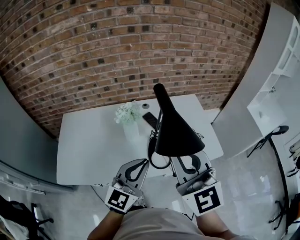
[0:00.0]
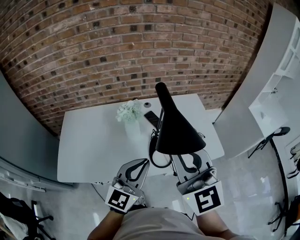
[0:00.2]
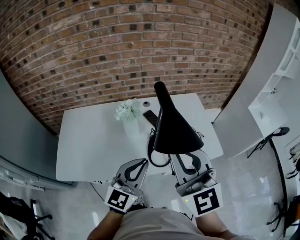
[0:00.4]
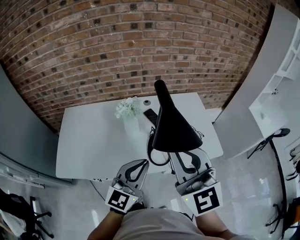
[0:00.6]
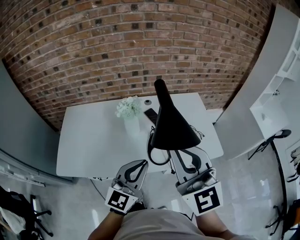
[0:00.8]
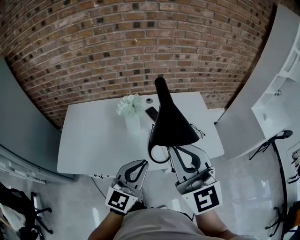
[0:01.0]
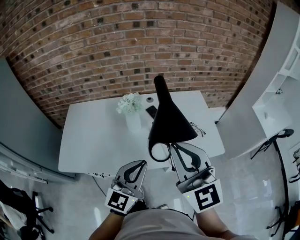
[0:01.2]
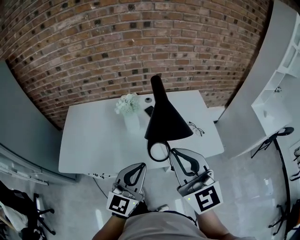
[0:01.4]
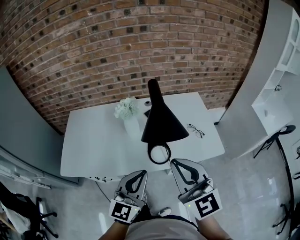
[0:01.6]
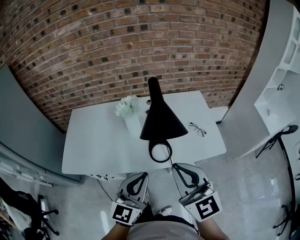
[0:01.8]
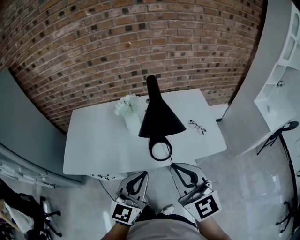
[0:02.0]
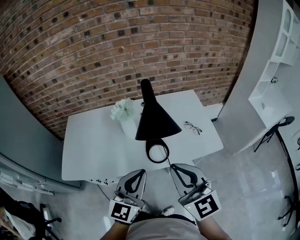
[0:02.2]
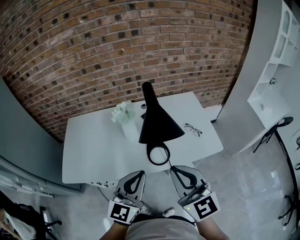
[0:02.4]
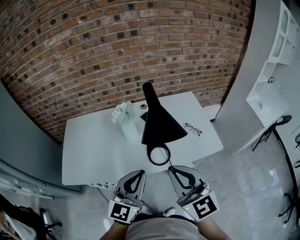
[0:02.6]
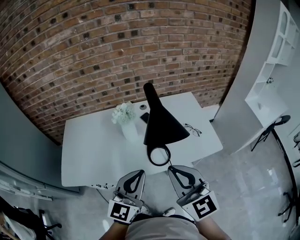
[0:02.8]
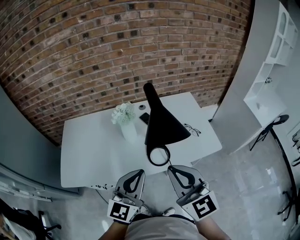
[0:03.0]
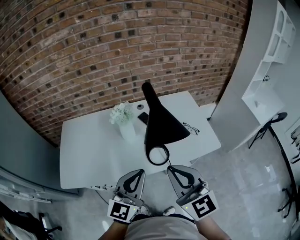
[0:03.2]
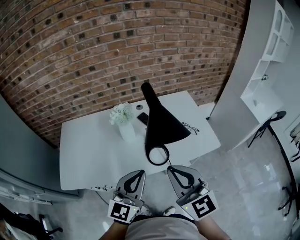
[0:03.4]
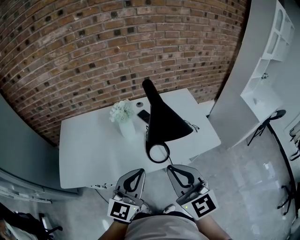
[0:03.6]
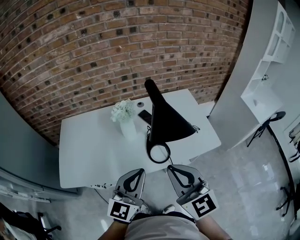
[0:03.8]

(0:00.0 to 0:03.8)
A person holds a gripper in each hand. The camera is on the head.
0:00.0 - 0:01.2: The grippers move only a little.
0:01.2 - 0:02.6: The right gripper travels downward and backward by some 10 cm.
0:02.6 - 0:03.8: There are only small adjustments of the grippers.

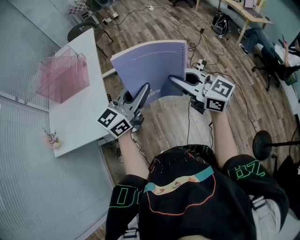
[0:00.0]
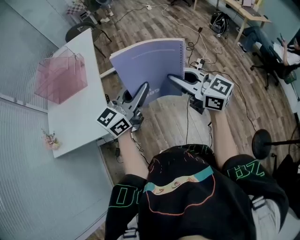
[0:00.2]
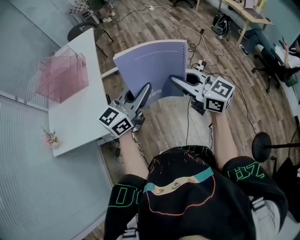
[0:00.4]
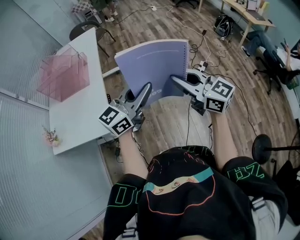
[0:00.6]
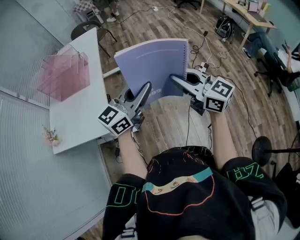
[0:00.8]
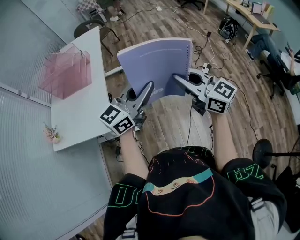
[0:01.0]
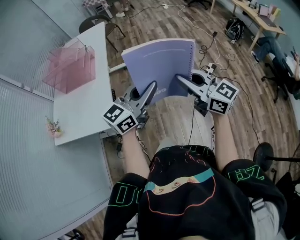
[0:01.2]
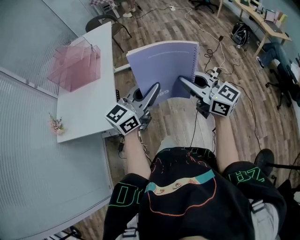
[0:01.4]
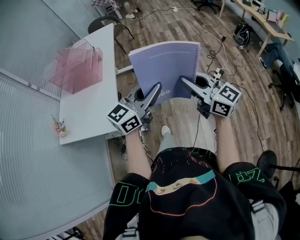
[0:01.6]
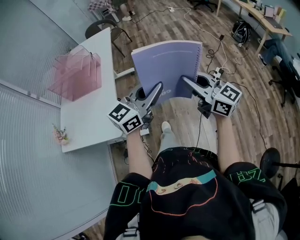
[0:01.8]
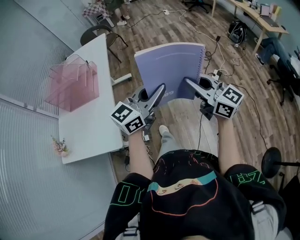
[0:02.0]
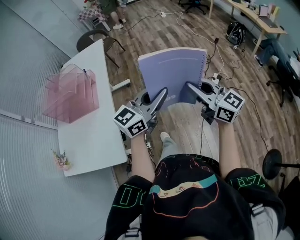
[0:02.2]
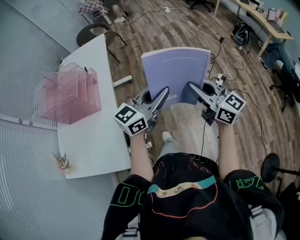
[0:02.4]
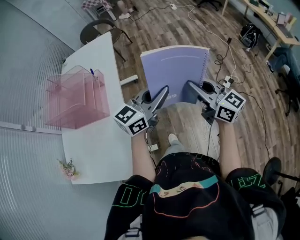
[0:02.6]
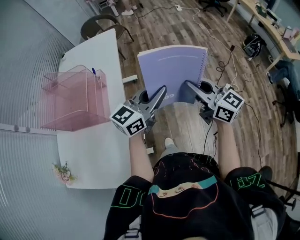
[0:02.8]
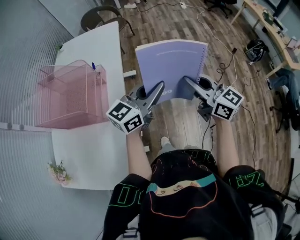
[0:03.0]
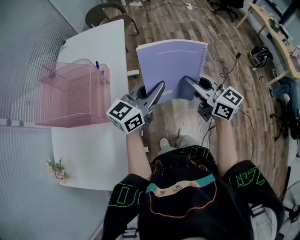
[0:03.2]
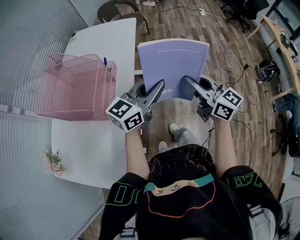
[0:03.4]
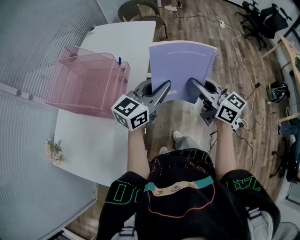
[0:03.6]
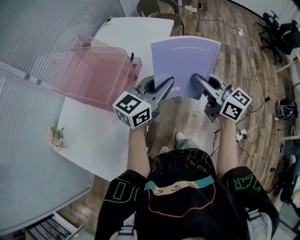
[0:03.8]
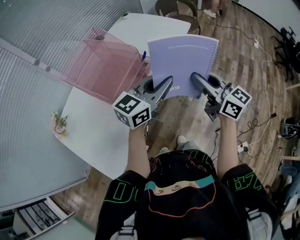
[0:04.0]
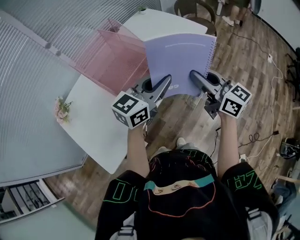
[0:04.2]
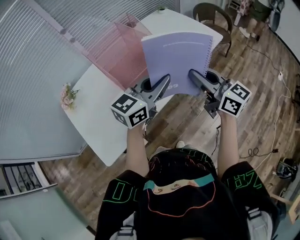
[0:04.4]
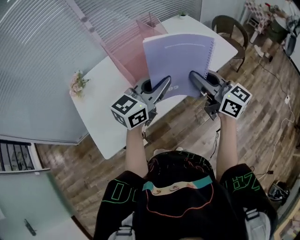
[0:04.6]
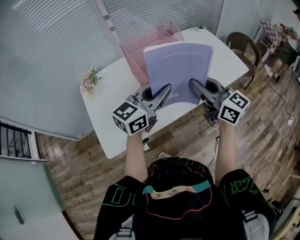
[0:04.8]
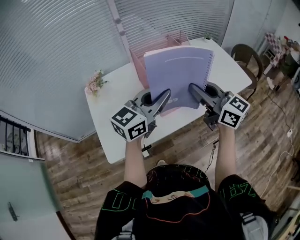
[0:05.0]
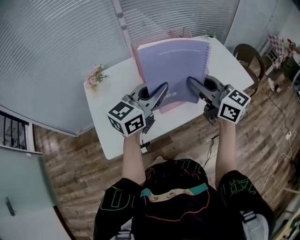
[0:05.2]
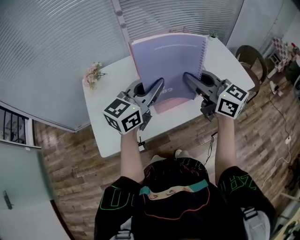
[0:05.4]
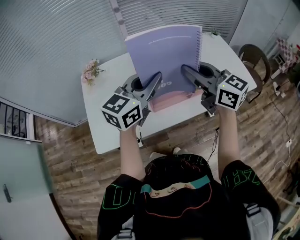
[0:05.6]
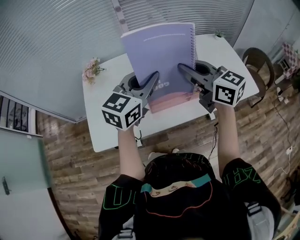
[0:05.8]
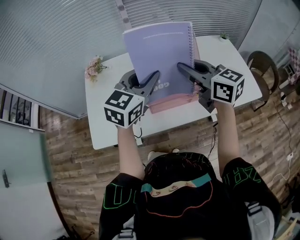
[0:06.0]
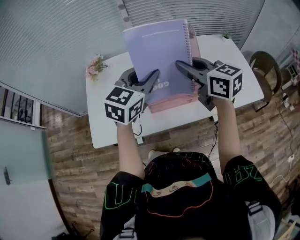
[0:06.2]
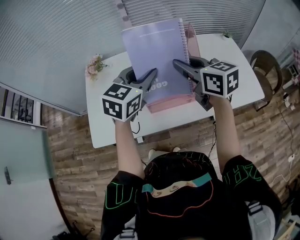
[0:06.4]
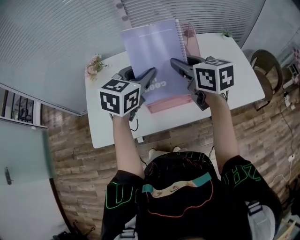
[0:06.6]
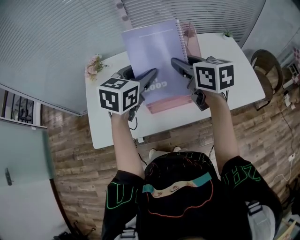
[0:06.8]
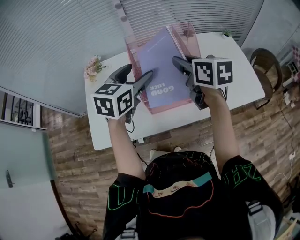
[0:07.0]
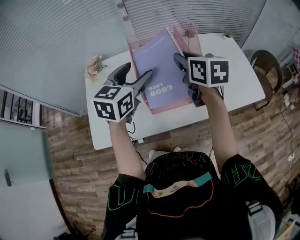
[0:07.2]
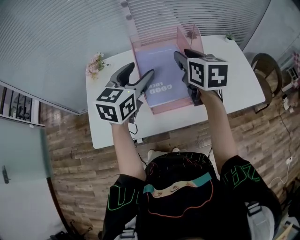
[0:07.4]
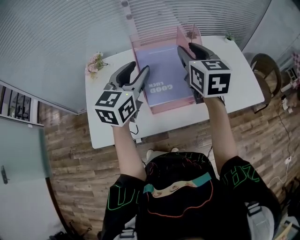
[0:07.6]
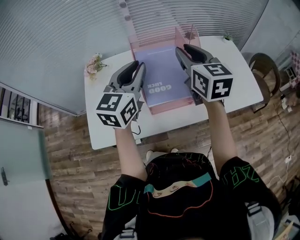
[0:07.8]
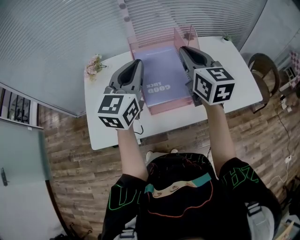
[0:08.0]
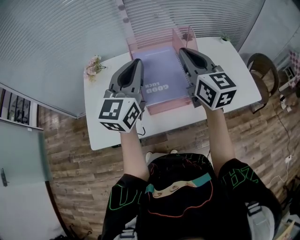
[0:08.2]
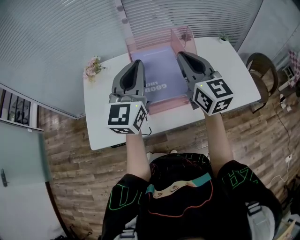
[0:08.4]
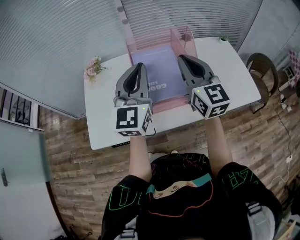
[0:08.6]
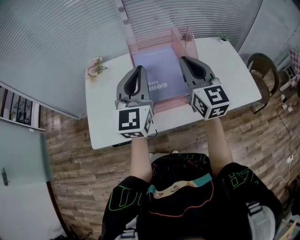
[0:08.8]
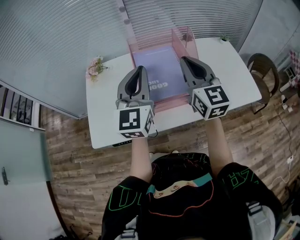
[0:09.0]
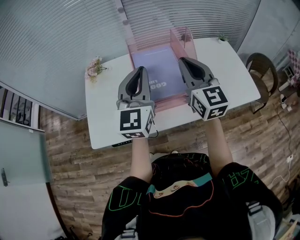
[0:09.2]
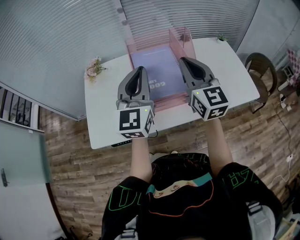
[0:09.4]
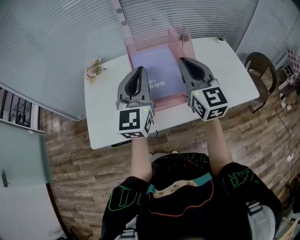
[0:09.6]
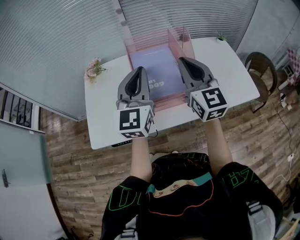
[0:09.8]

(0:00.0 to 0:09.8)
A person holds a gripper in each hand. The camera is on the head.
0:00.0 - 0:01.4: The grippers move only a little.
0:01.4 - 0:02.8: The grippers both shift forward and to the left by roughly 35 cm.
0:02.8 - 0:04.2: The left gripper ends up approximately 20 cm from where it was, and rotates roughly 50 degrees; the right gripper moves some 30 cm, and changes its angle by approximately 40 degrees.
0:04.2 - 0:05.6: The right gripper changes place by approximately 25 cm, and swivels some 40 degrees; the left gripper ends up roughly 20 cm from where it was, and rotates about 40 degrees.
0:05.6 - 0:07.0: The two grippers go some 10 cm forward. The left gripper turns by roughly 30 degrees, and opens its fingers, while the right gripper changes its angle by some 30 degrees.
0:07.0 - 0:08.4: The two grippers go about 5 cm upward. The right gripper changes its angle by some 30 degrees; the left gripper tips its fingers upward by some 30 degrees, and closes its fingers.
0:08.4 - 0:09.8: There are only small adjustments of the grippers.

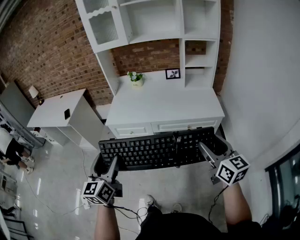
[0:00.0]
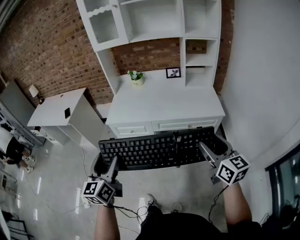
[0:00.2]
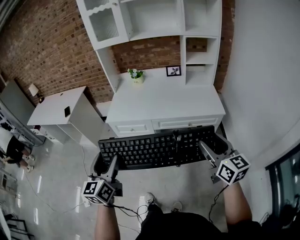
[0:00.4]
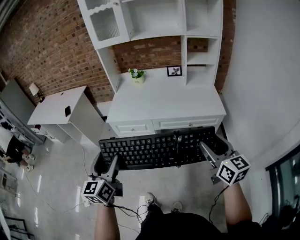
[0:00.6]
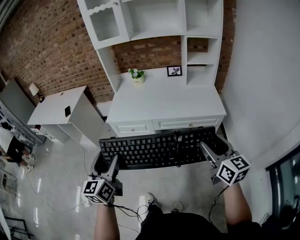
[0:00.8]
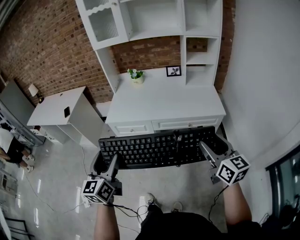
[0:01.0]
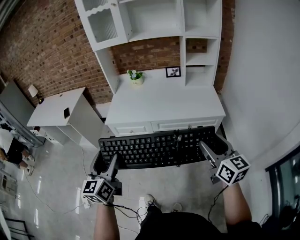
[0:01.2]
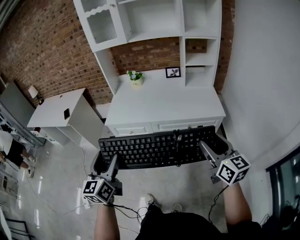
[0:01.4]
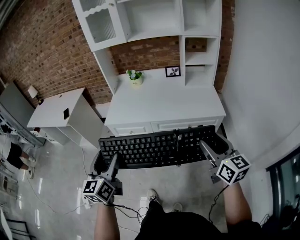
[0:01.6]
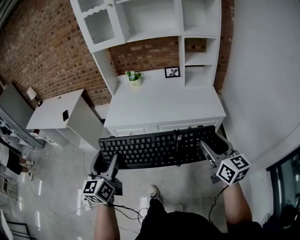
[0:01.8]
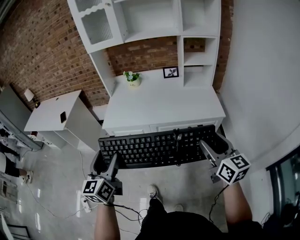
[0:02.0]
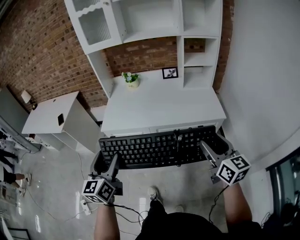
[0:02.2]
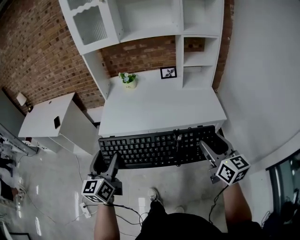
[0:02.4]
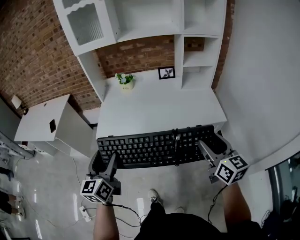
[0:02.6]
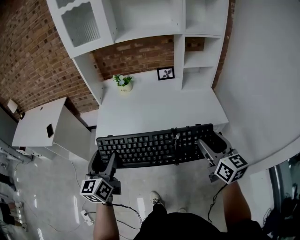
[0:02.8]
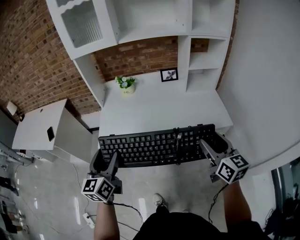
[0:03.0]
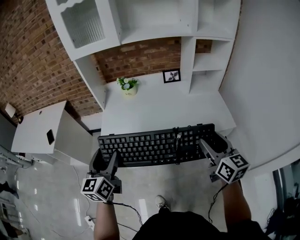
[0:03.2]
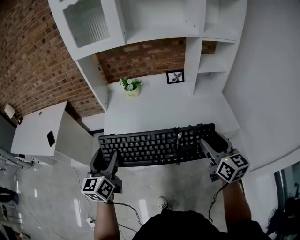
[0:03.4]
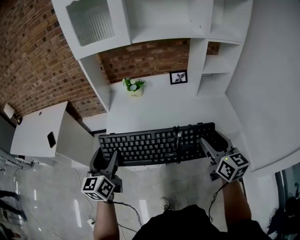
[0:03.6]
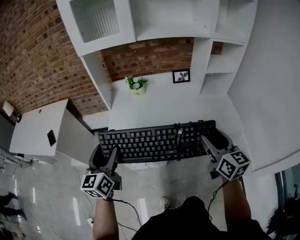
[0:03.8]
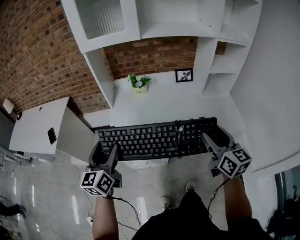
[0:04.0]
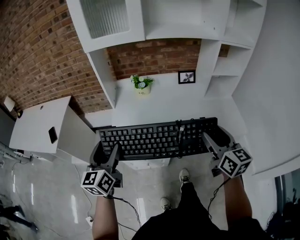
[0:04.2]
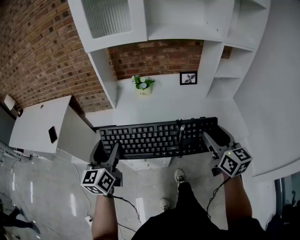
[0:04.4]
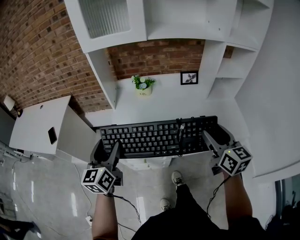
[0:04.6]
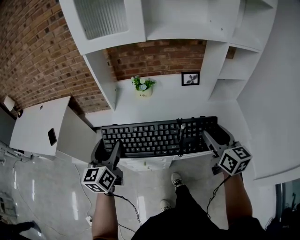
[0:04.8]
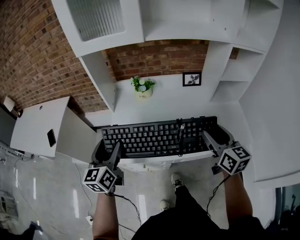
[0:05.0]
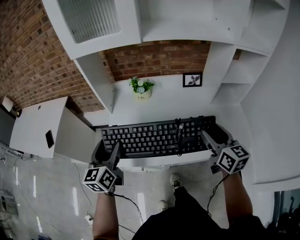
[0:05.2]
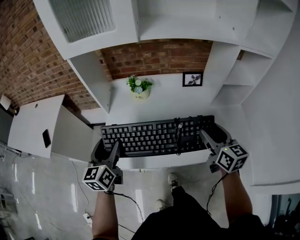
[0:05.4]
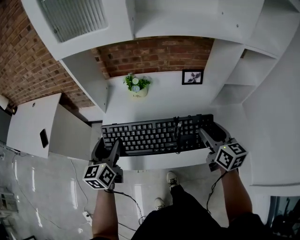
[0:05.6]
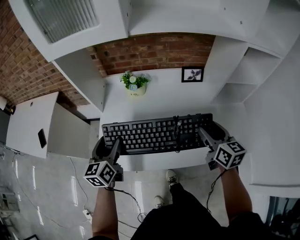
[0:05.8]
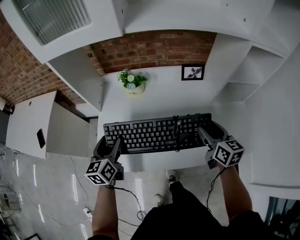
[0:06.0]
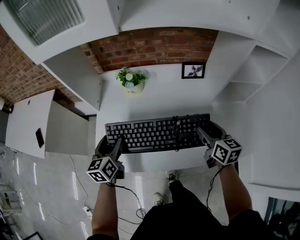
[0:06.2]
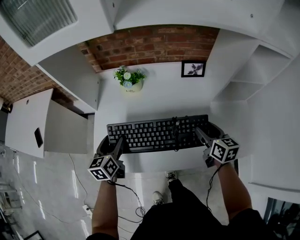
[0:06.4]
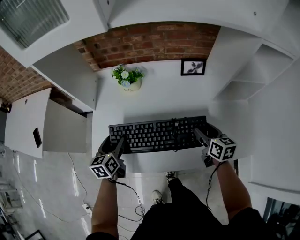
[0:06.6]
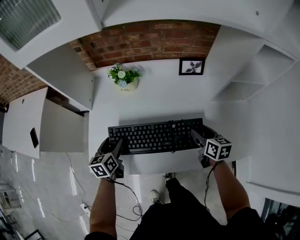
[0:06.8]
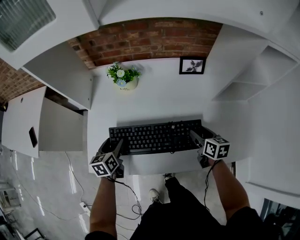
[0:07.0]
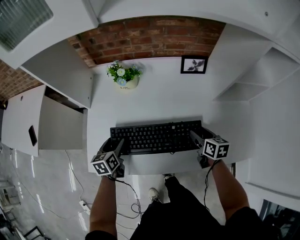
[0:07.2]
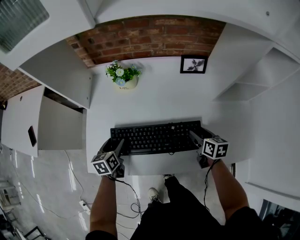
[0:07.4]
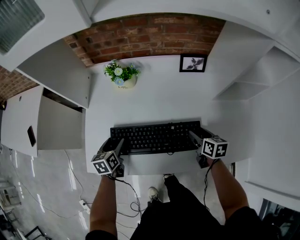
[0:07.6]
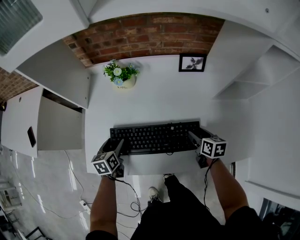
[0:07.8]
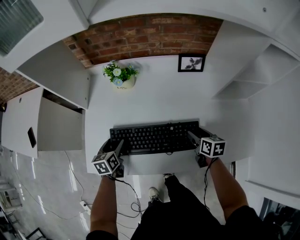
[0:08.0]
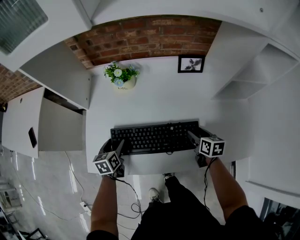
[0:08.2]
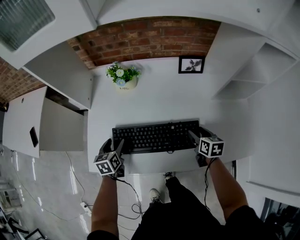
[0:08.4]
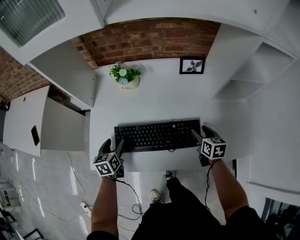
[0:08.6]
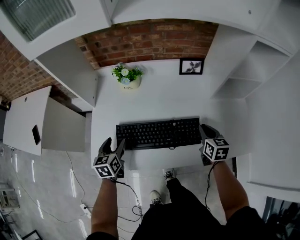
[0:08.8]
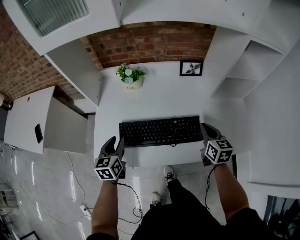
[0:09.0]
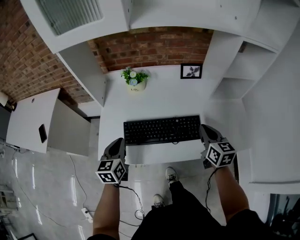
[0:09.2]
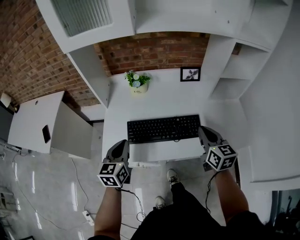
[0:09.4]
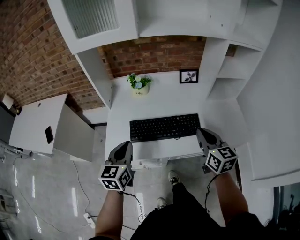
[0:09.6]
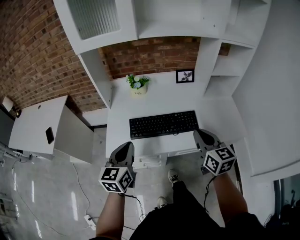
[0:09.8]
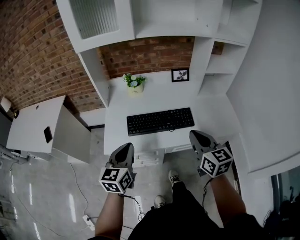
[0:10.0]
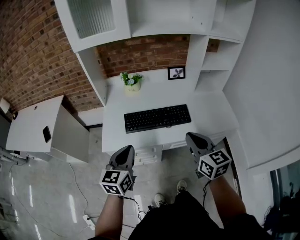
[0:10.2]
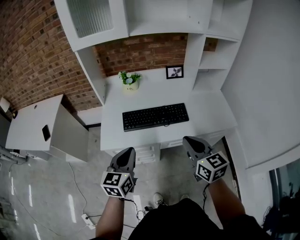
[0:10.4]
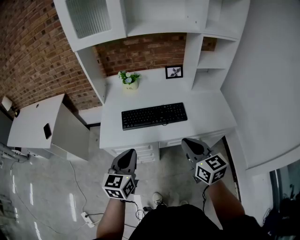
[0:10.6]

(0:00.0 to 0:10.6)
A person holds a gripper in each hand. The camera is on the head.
0:00.0 - 0:01.6: Neither gripper changes place.
0:01.6 - 0:03.0: Both grippers travel together forward, roughly 20 cm.
0:03.0 - 0:04.6: The right gripper travels forward and to the left by about 15 cm. Meanwhile the left gripper goes approximately 15 cm to the left and forward.
0:04.6 - 0:06.0: Both grippers travel together forward and downward, roughly 25 cm.
0:06.0 - 0:07.6: Both grippers move downward, some 20 cm. The left gripper swivels approximately 20 degrees. Meanwhile the right gripper swivels roughly 20 degrees.
0:07.6 - 0:09.0: The two grippers go some 10 cm upward. The left gripper closes its fingers; the right gripper swivels approximately 20 degrees, and closes its fingers.
0:09.0 - 0:10.6: Both grippers move backward and upward, roughly 30 cm. The left gripper changes its angle by about 20 degrees, and closes up.
